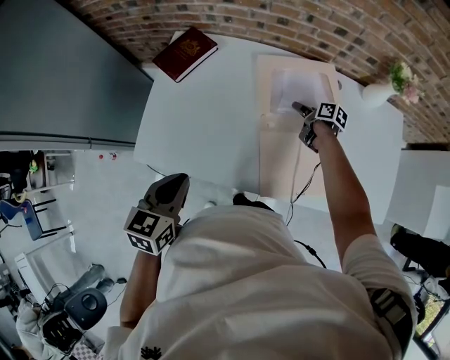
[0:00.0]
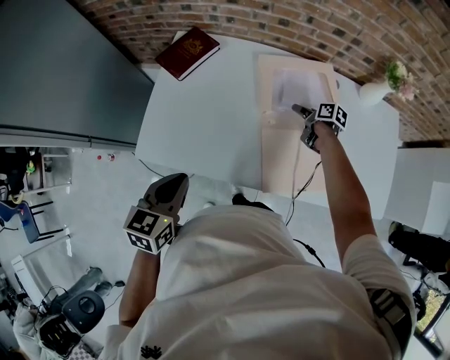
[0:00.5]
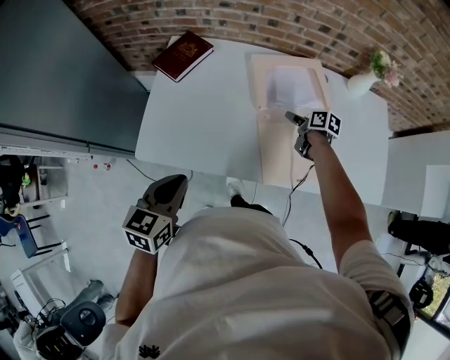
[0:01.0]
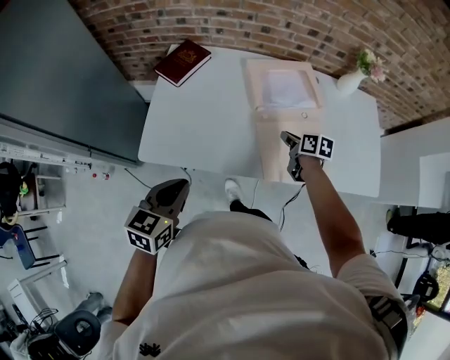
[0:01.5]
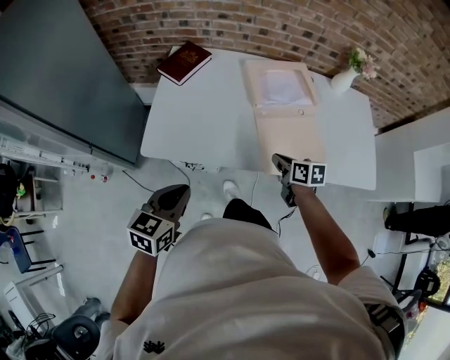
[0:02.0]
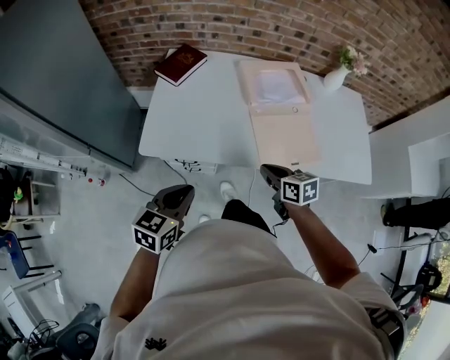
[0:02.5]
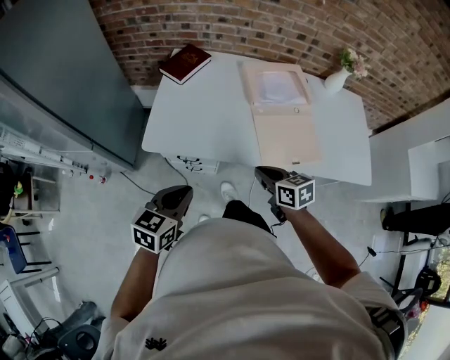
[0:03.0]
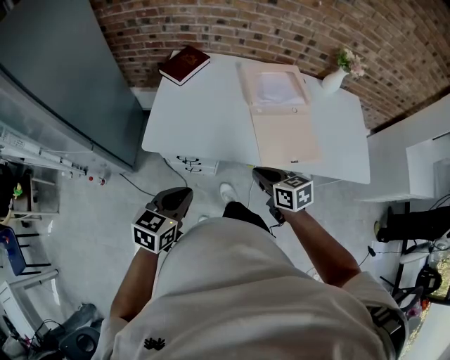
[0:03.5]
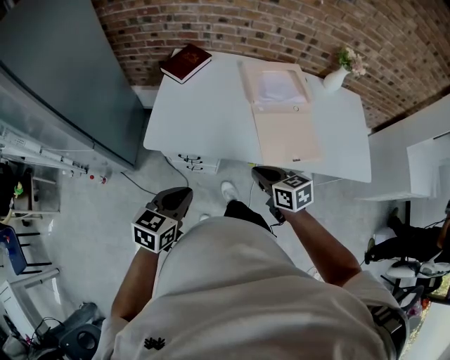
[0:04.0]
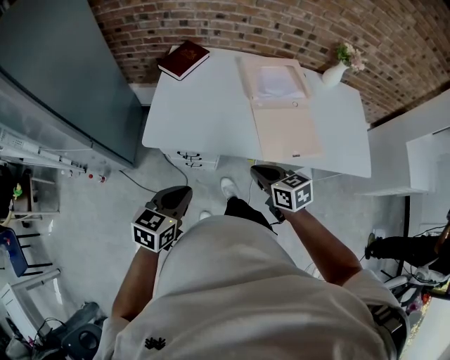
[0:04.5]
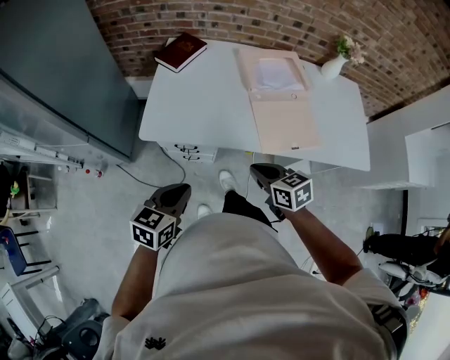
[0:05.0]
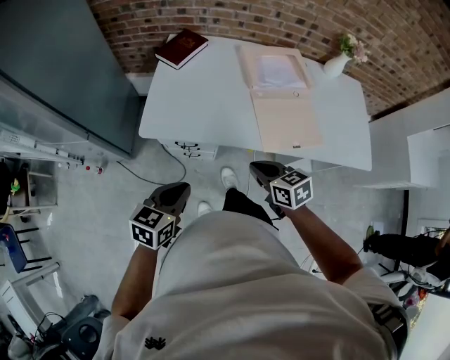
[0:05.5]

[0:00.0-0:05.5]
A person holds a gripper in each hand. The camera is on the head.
0:00.0 to 0:02.0: The left gripper goes about 20 cm backward and to the left. Meanwhile the right gripper shifts some 35 cm backward and to the left, rotates some 30 degrees, and closes its fingers.
0:02.0 to 0:03.5: The right gripper goes roughly 15 cm backward, to the left and upward, and rotates some 20 degrees; the left gripper goes approximately 5 cm backward.
0:03.5 to 0:05.5: The grippers move only a little.

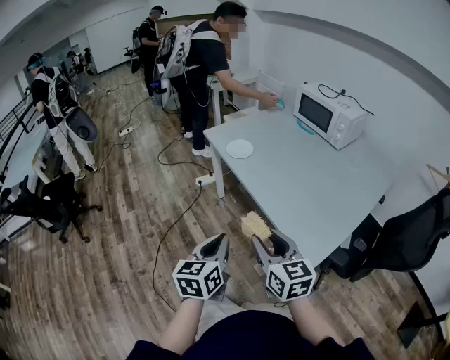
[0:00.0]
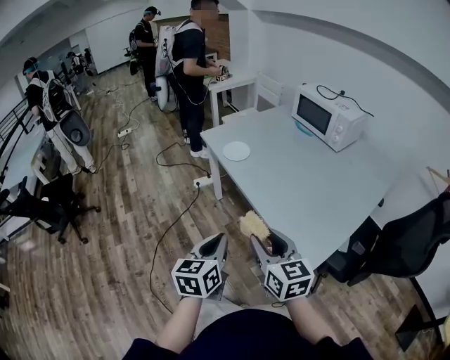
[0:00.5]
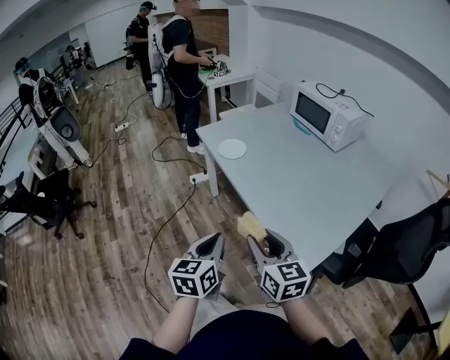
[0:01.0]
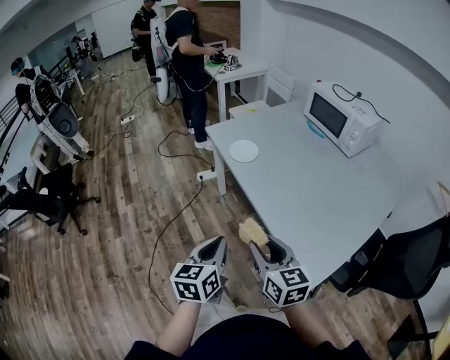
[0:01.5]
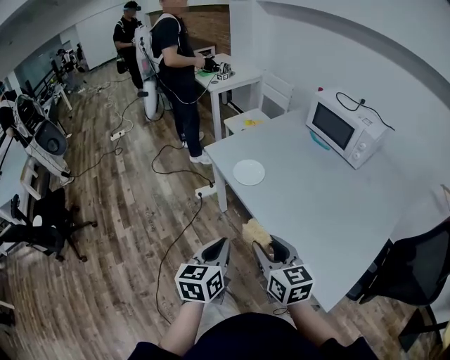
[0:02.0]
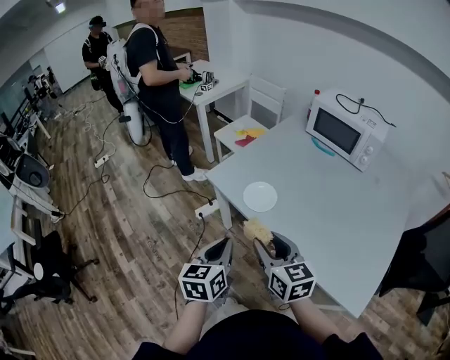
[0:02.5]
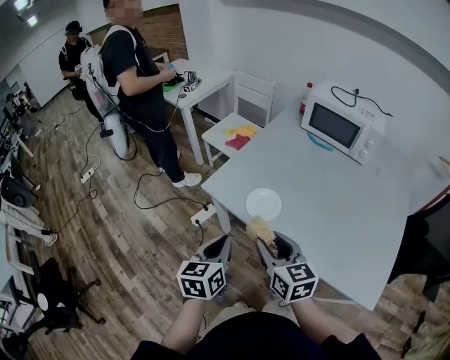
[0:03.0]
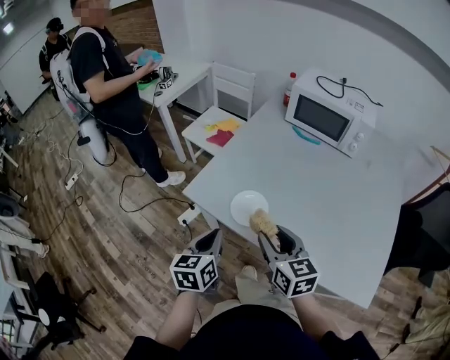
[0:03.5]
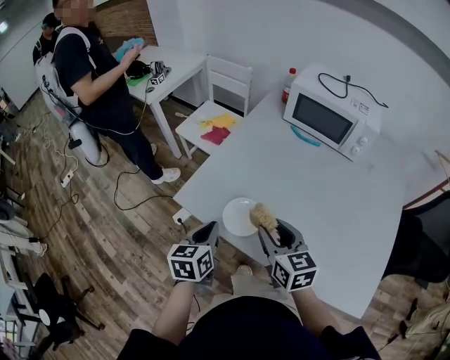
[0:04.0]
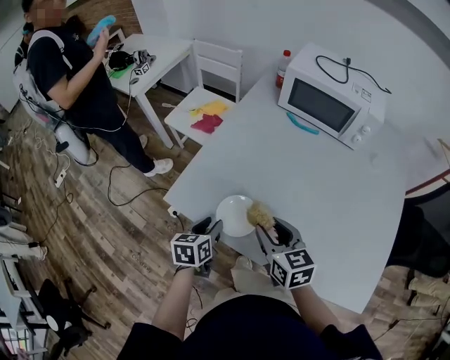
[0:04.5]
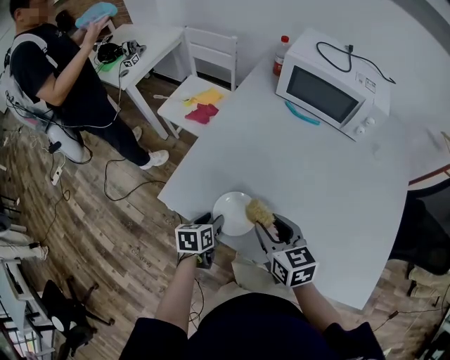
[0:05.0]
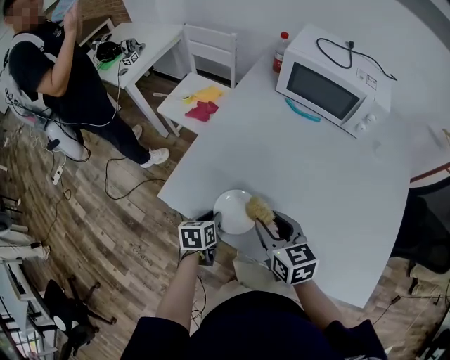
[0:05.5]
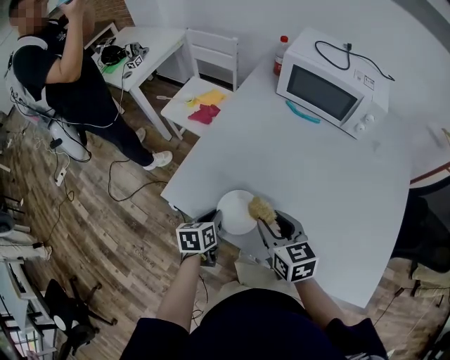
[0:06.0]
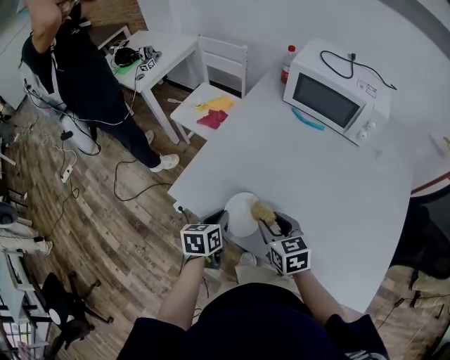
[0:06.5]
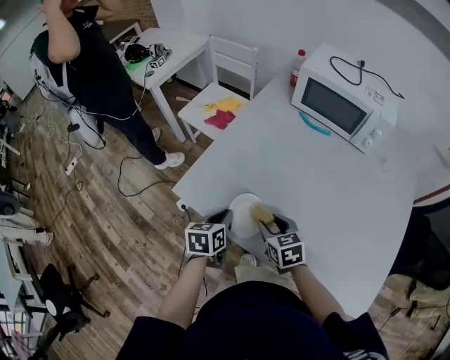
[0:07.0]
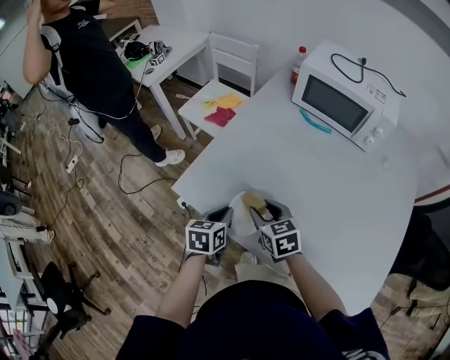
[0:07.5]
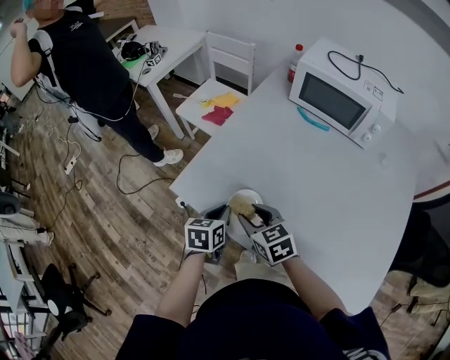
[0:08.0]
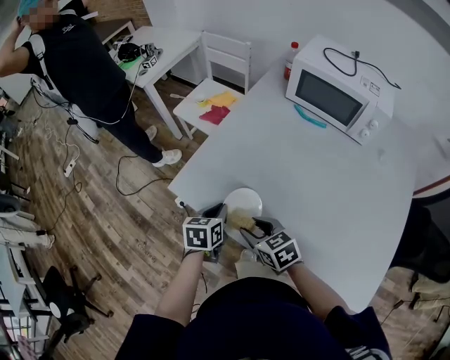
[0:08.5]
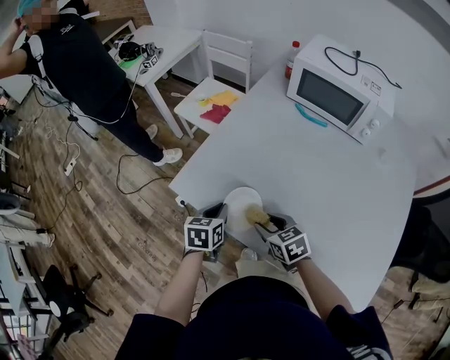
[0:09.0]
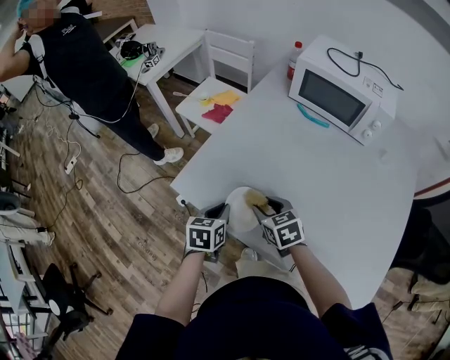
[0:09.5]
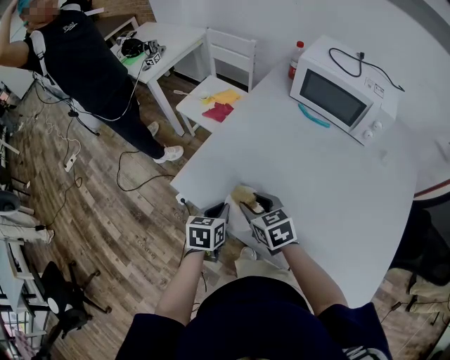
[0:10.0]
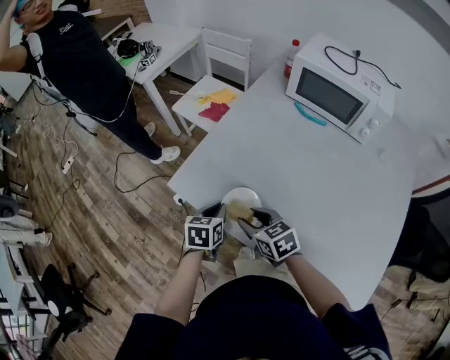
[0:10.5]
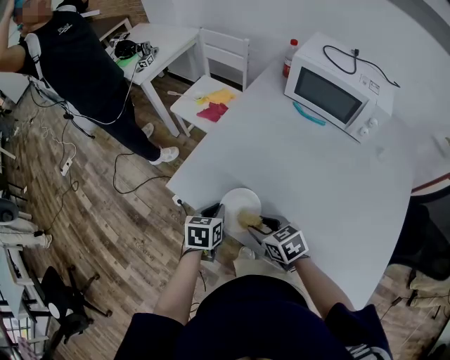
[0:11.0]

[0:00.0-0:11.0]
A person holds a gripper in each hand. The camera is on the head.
0:00.0 to 0:02.0: Both grippers move forward, roughly 20 cm.
0:02.0 to 0:03.5: The two grippers go roughly 25 cm forward. The right gripper rotates approximately 20 degrees. The left gripper turns by about 20 degrees.
0:03.5 to 0:05.5: The left gripper is displaced downward and forward by approximately 25 cm, and swivels approximately 30 degrees. The right gripper shifts about 15 cm forward and downward.
0:05.5 to 0:07.5: The right gripper changes place by some 5 cm, while the left gripper moves upward, roughly 10 cm.
0:07.5 to 0:09.0: The right gripper is displaced backward by approximately 5 cm.

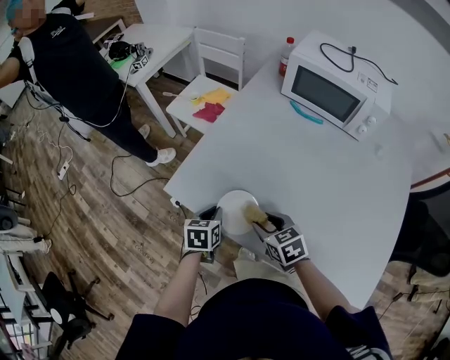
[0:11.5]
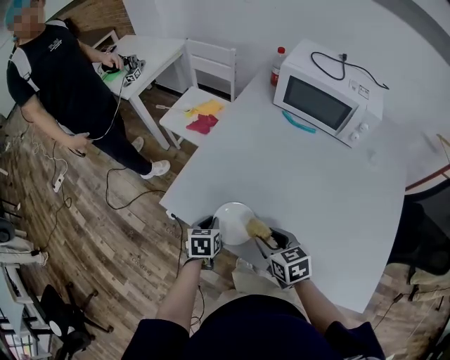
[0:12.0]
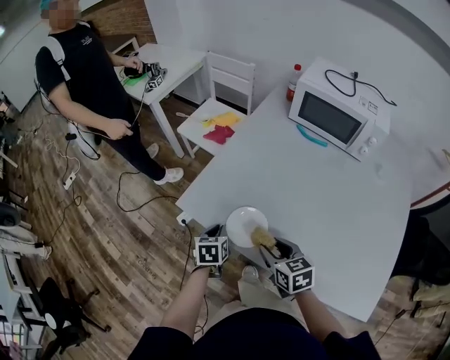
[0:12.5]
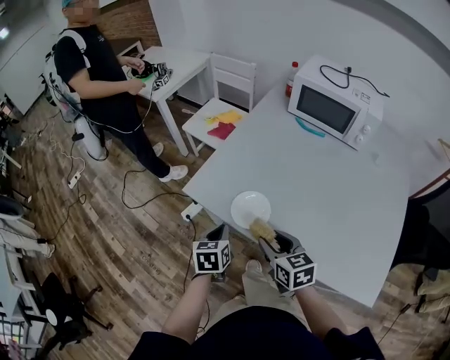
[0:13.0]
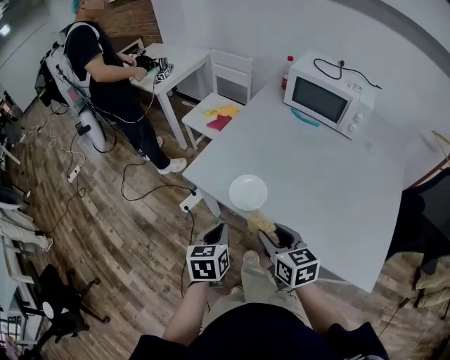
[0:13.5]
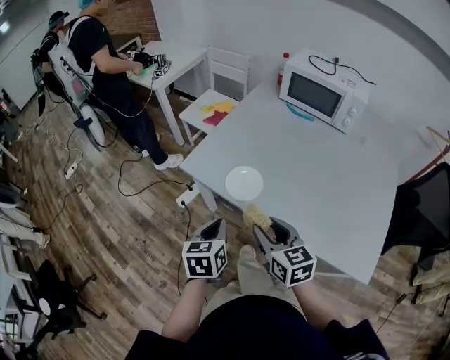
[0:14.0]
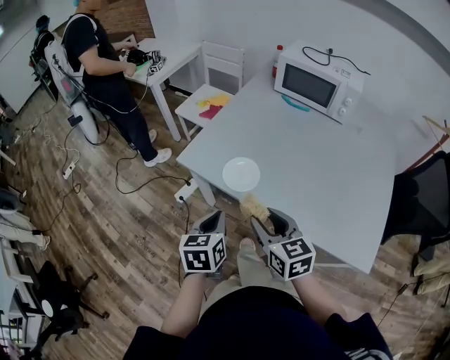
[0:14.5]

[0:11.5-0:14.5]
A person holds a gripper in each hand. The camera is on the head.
0:11.5 to 0:13.0: Both grippers travel together backward and upward, roughly 10 cm.
0:13.0 to 0:14.5: The grippers both shift backward and upward by about 10 cm.

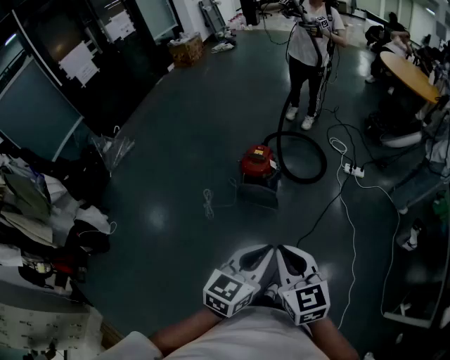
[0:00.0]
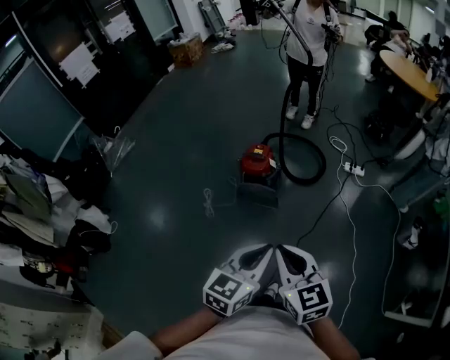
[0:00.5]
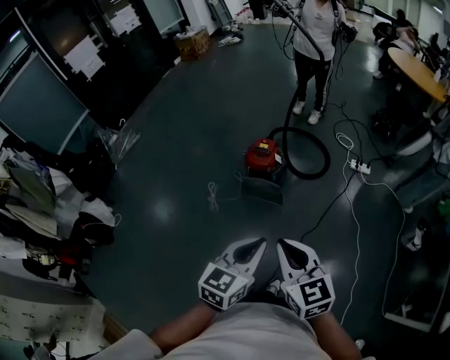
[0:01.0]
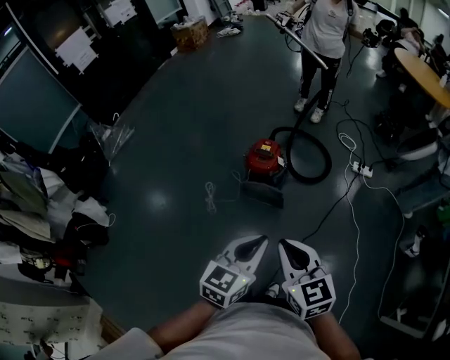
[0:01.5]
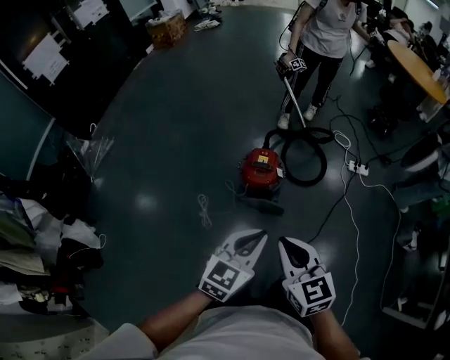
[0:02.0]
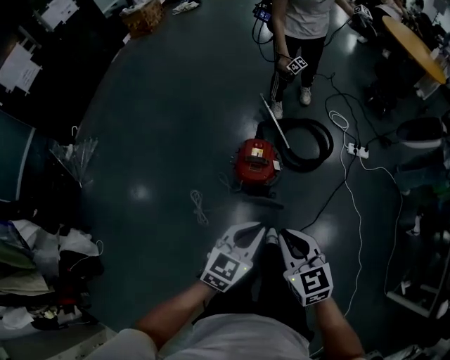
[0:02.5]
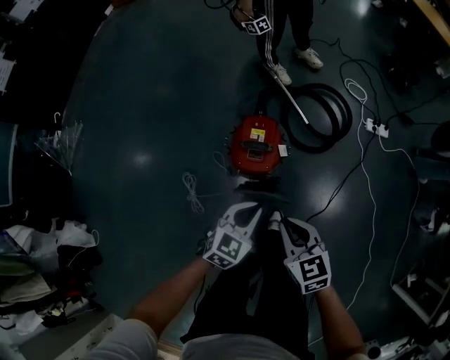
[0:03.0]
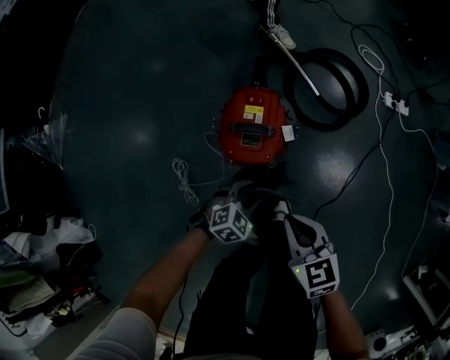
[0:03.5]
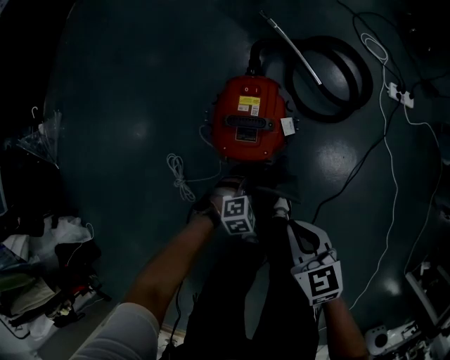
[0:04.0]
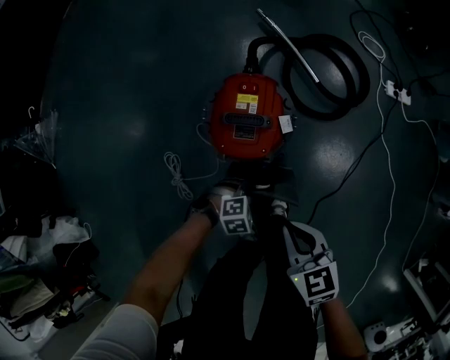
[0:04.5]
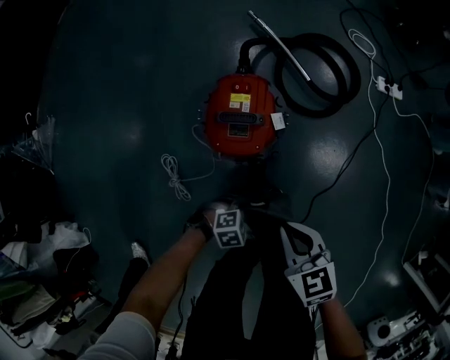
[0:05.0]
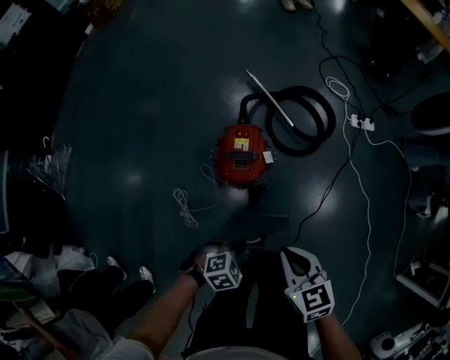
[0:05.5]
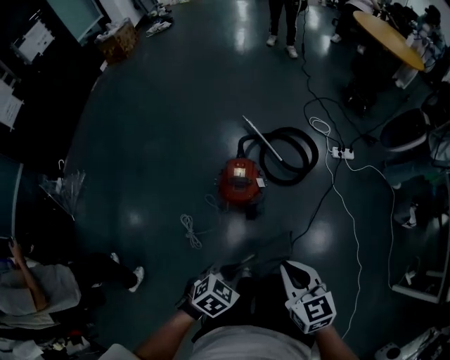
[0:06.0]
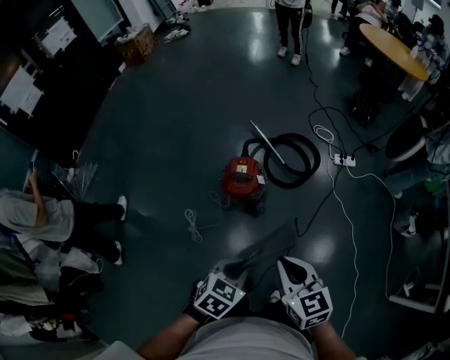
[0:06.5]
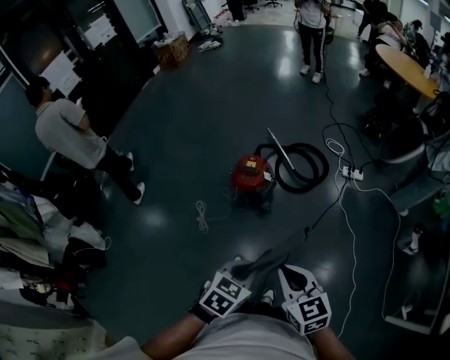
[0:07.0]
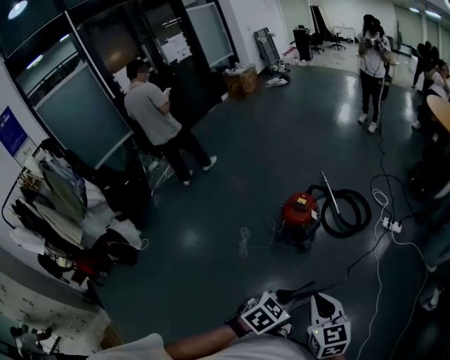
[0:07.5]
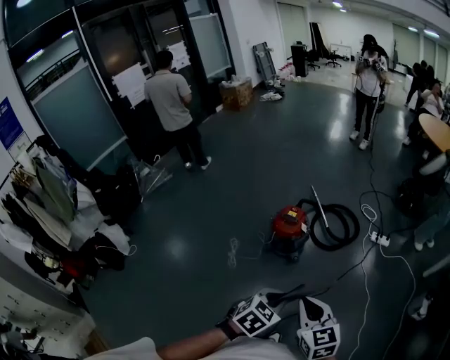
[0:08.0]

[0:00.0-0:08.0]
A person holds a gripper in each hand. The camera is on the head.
0:00.0 to 0:02.0: Both grippers move forward and to the left, roughly 30 cm.
0:02.0 to 0:04.0: The left gripper heads downward, covering about 70 cm, tilts its fingers about 50 degrees downward, and opens up; the right gripper travels downward and forward by about 50 cm.
0:04.0 to 0:06.0: The grippers both shift upward by about 40 cm. The left gripper changes its angle by some 30 degrees, and closes its fingers.
0:06.0 to 0:08.0: The grippers both shift backward, to the right and upward by approximately 30 cm. The left gripper rotates roughly 20 degrees.
